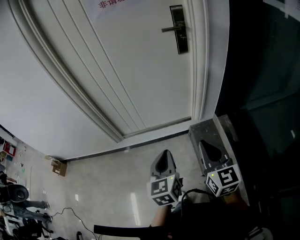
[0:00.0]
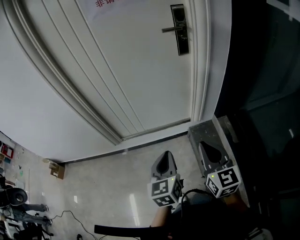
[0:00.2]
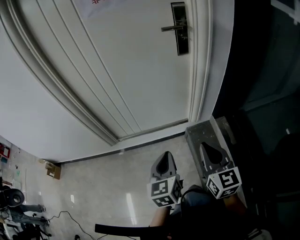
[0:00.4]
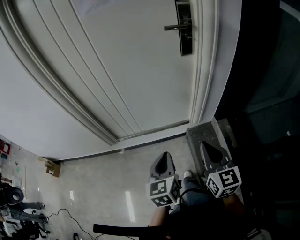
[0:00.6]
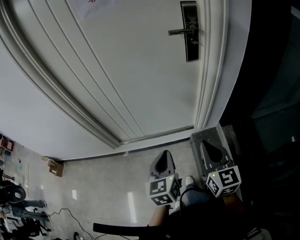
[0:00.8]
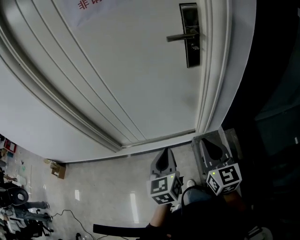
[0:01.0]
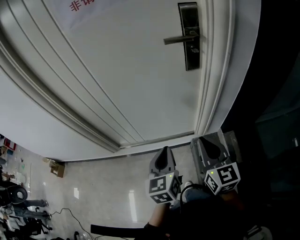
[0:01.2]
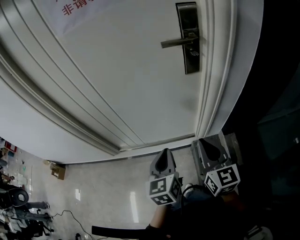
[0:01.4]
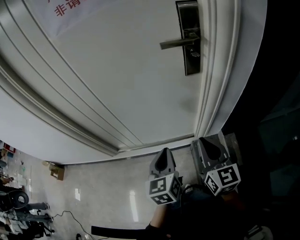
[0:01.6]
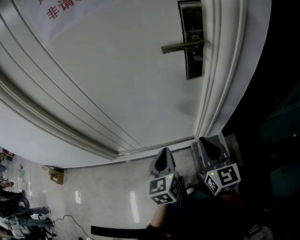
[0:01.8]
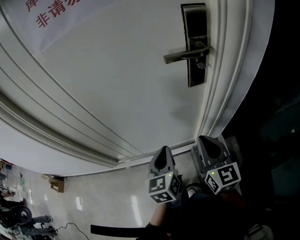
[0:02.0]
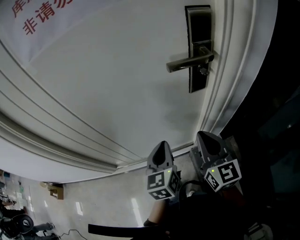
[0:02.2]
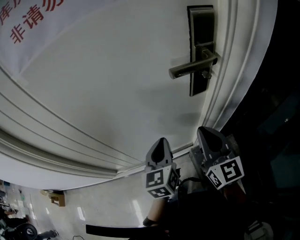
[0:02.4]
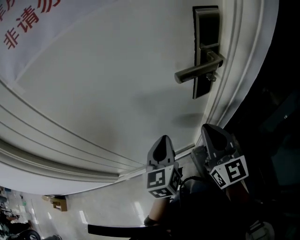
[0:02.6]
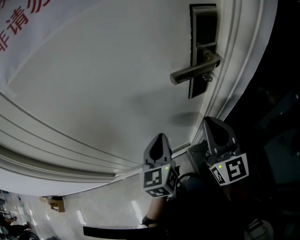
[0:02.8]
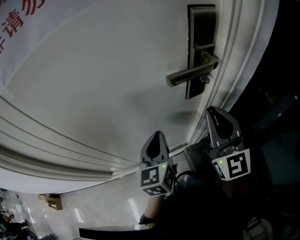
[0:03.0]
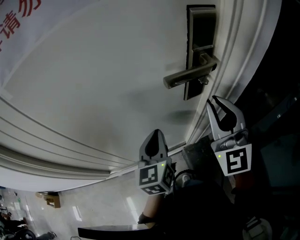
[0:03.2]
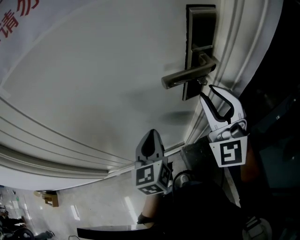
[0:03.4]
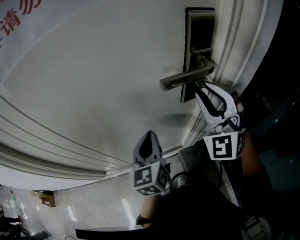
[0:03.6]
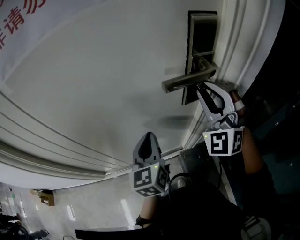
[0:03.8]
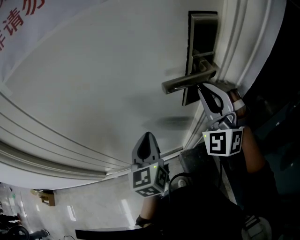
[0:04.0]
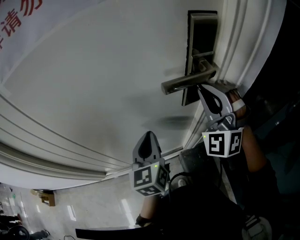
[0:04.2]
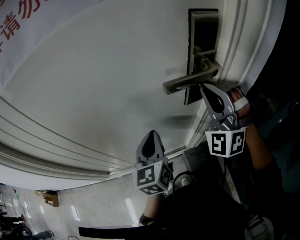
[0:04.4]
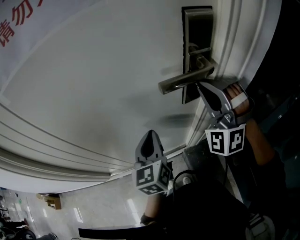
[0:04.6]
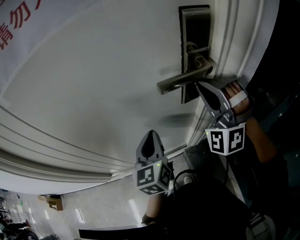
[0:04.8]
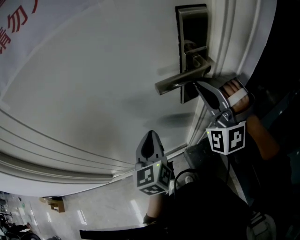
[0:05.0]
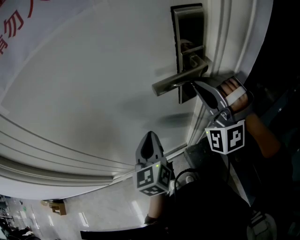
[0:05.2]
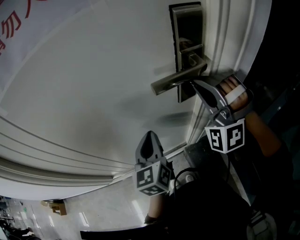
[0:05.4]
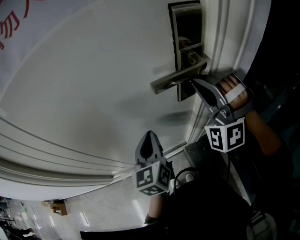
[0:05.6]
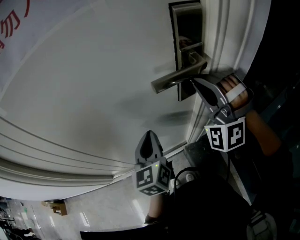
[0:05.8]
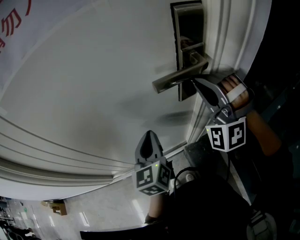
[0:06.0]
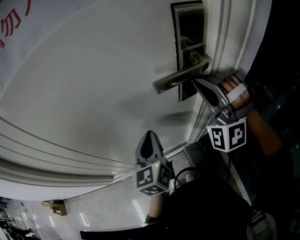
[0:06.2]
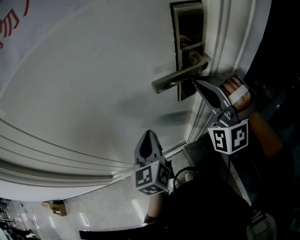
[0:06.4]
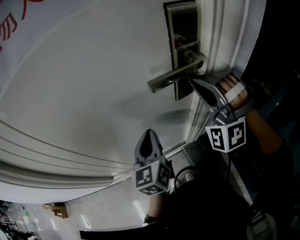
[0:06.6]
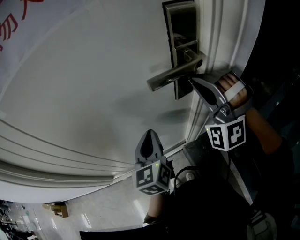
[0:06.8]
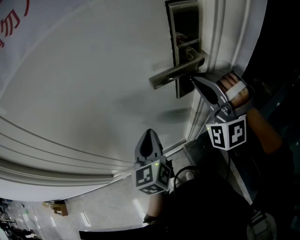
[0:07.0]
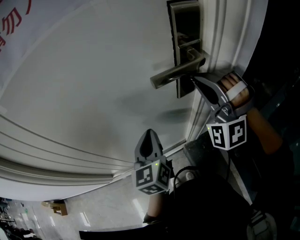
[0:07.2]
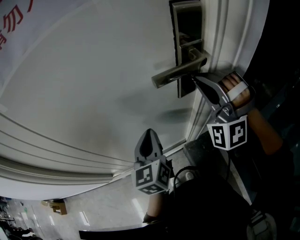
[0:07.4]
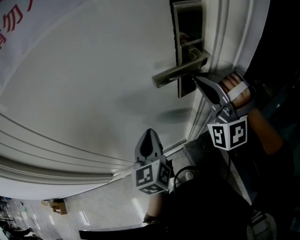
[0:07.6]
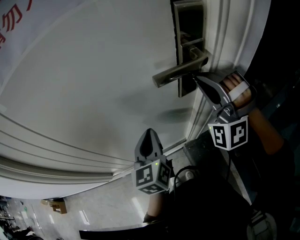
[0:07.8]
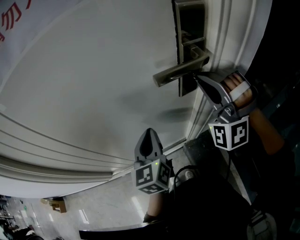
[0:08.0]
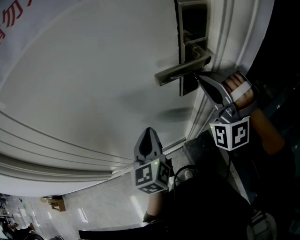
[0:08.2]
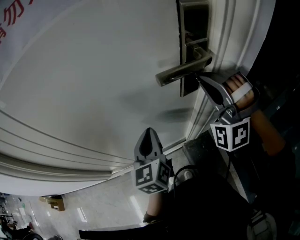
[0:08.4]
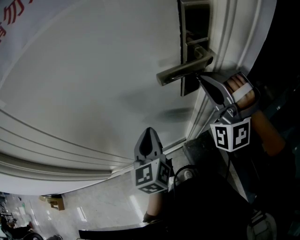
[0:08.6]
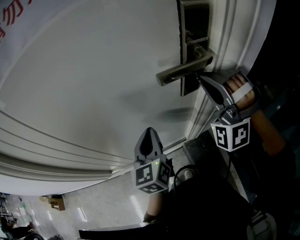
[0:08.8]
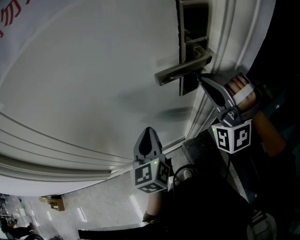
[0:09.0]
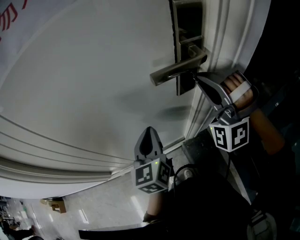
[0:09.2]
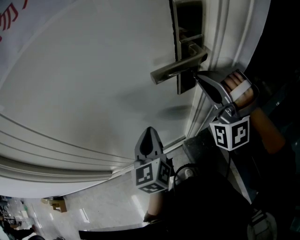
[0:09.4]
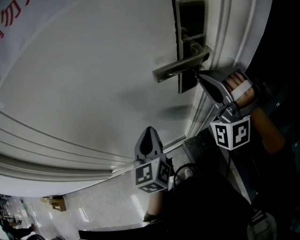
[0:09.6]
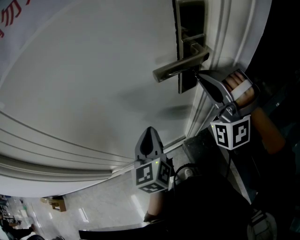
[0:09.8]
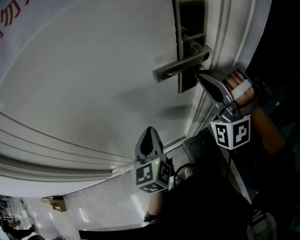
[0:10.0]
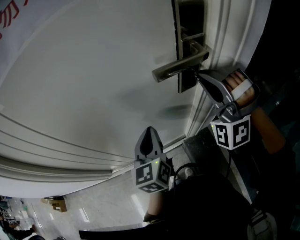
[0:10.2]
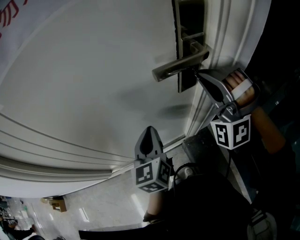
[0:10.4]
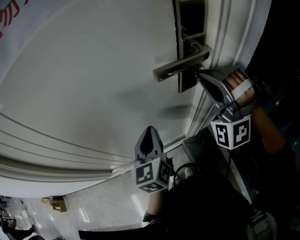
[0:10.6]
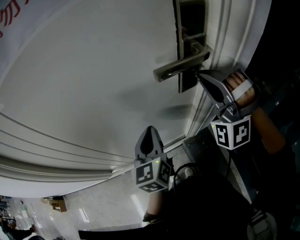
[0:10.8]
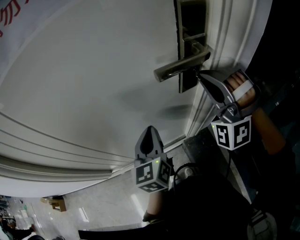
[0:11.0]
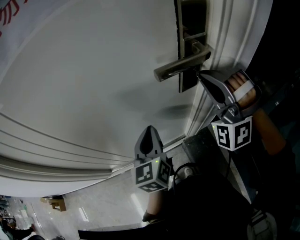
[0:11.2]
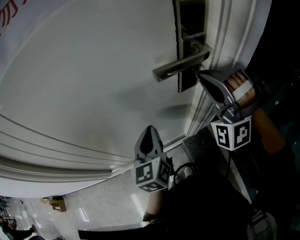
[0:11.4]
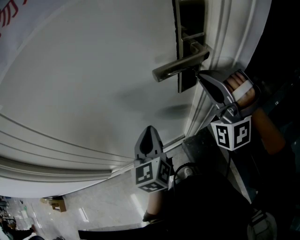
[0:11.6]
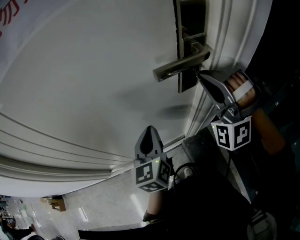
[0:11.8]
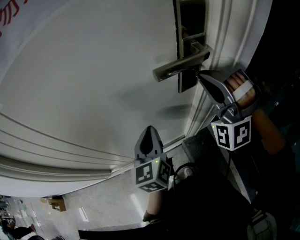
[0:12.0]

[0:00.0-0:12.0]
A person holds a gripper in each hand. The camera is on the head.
0:00.0 to 0:01.6: Both grippers move forward, about 30 cm.
0:01.6 to 0:03.0: The right gripper shifts some 20 cm forward and upward, and changes its angle by some 30 degrees; the left gripper heads forward, covering some 20 cm.
0:03.0 to 0:04.4: The right gripper shifts some 10 cm forward, and twists approximately 60 degrees counterclockwise, seen from behind.
0:04.4 to 0:06.0: The grippers move only a little.
0:06.0 to 0:07.6: Both grippers stay about where they are.
0:07.6 to 0:12.0: Neither gripper changes place.

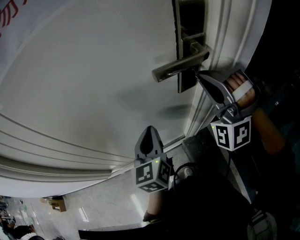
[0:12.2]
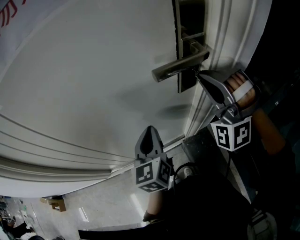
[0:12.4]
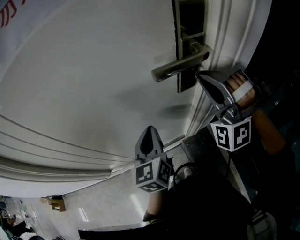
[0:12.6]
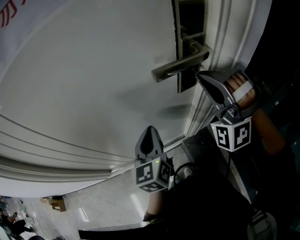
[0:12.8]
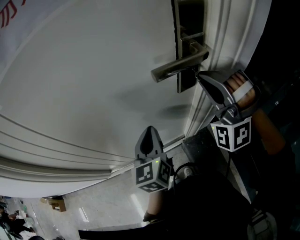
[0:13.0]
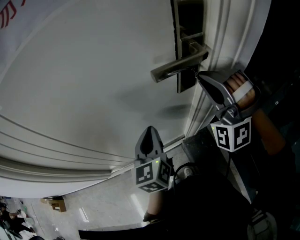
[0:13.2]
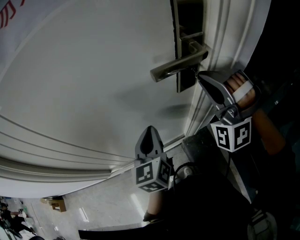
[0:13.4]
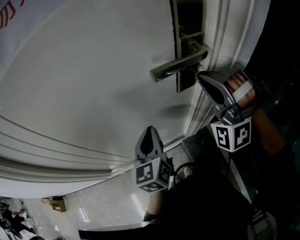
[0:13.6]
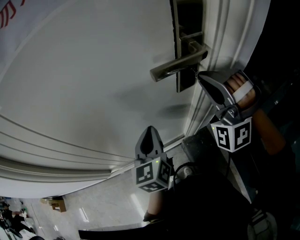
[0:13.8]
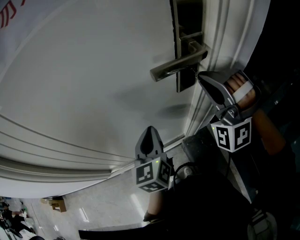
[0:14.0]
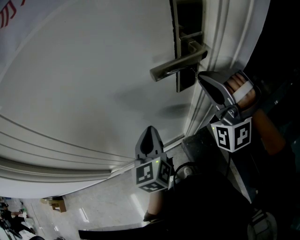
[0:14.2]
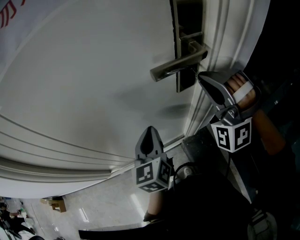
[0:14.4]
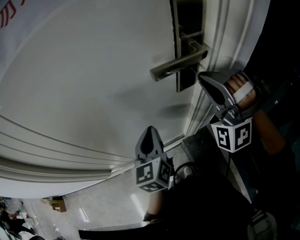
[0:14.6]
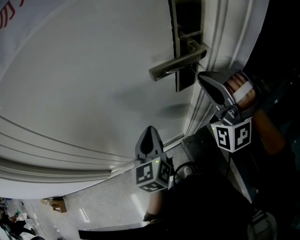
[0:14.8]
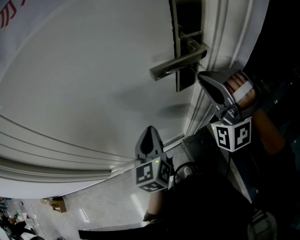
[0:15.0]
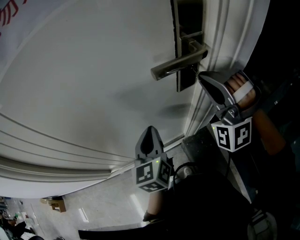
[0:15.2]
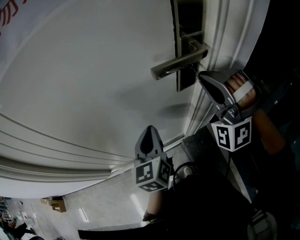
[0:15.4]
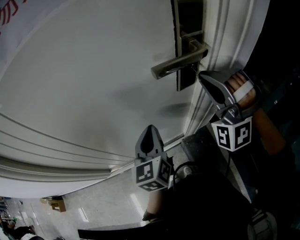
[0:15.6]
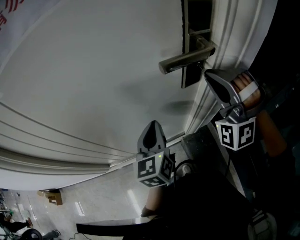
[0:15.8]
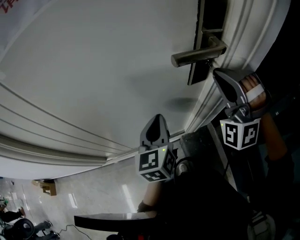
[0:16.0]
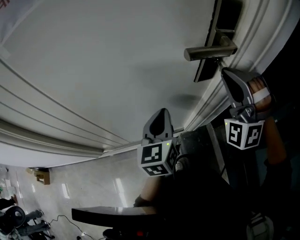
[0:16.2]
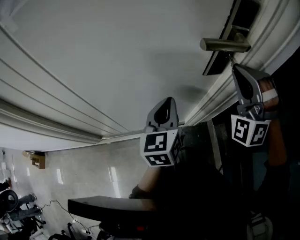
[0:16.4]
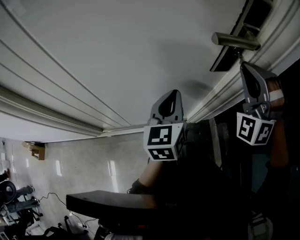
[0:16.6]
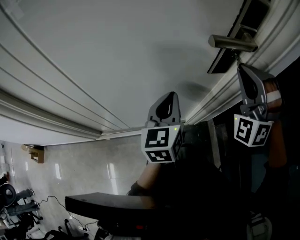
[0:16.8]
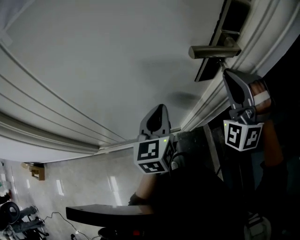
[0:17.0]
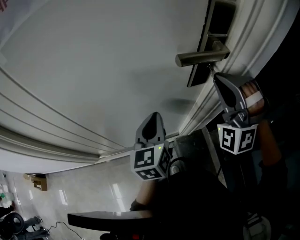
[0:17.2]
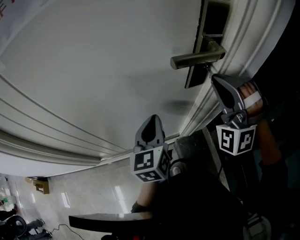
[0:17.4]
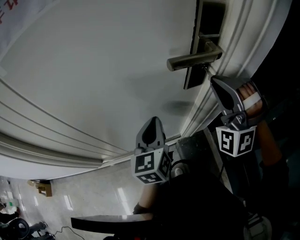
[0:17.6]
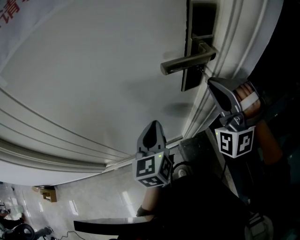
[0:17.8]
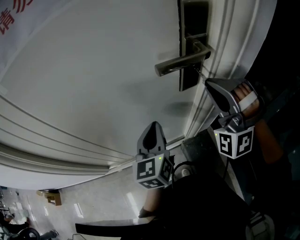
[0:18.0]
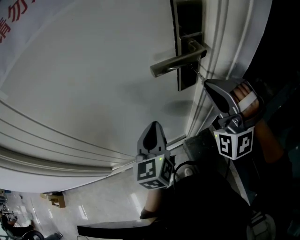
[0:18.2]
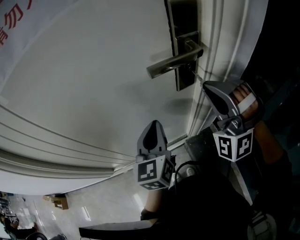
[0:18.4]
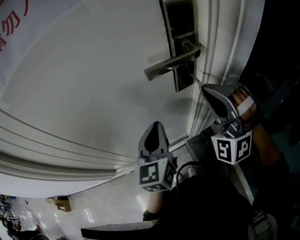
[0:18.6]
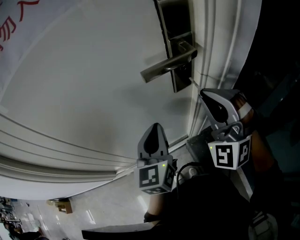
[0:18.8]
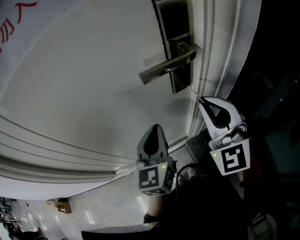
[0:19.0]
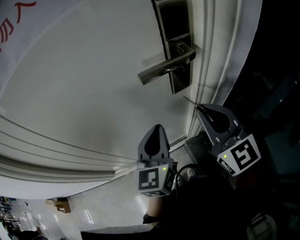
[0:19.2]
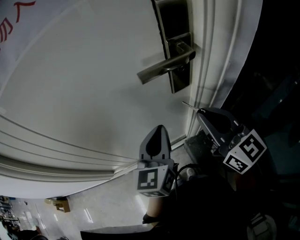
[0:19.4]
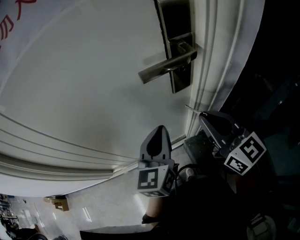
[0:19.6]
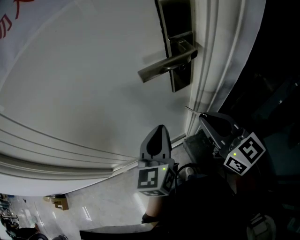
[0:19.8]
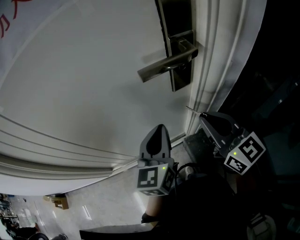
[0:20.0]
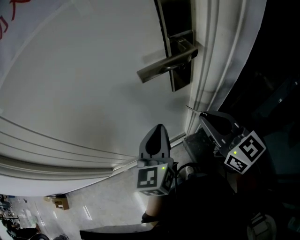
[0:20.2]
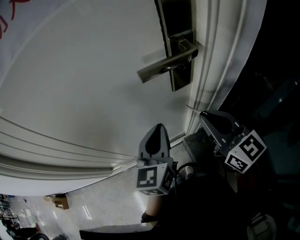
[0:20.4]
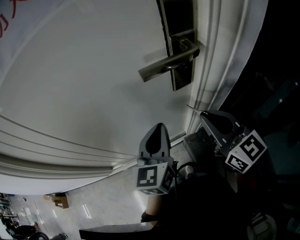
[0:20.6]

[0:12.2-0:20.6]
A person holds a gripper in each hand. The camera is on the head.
0:12.2 to 0:16.4: The two grippers keep their place.
0:16.4 to 0:17.8: The two grippers keep their place.
0:17.8 to 0:19.2: The left gripper shifts by about 5 cm. The right gripper goes approximately 5 cm backward, and rolls clockwise, seen from behind, by some 80 degrees.
0:19.2 to 0:20.6: The grippers move only a little.

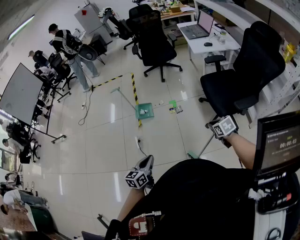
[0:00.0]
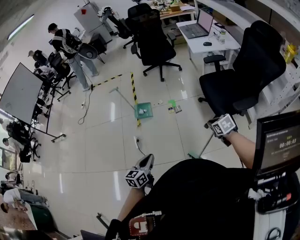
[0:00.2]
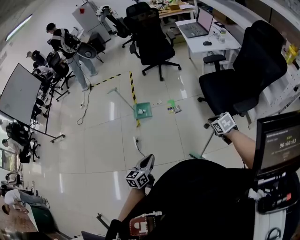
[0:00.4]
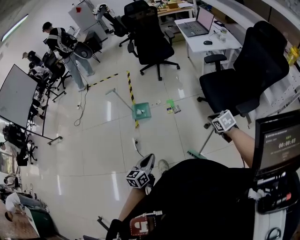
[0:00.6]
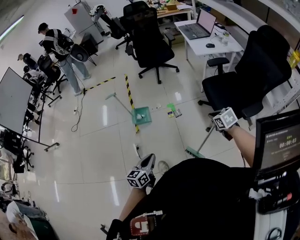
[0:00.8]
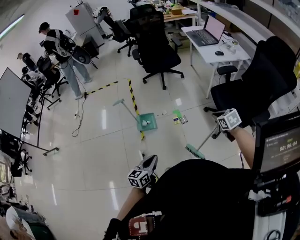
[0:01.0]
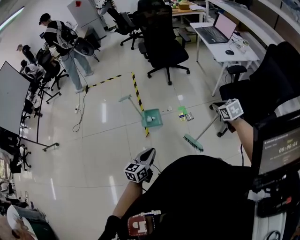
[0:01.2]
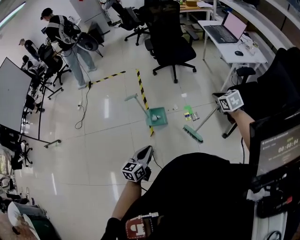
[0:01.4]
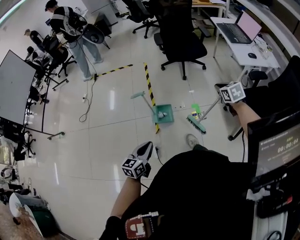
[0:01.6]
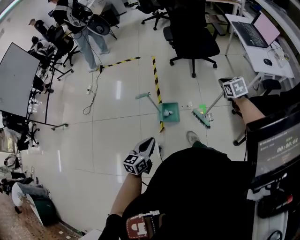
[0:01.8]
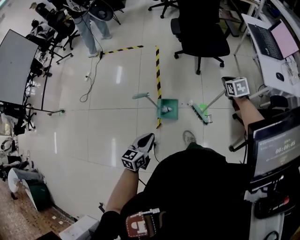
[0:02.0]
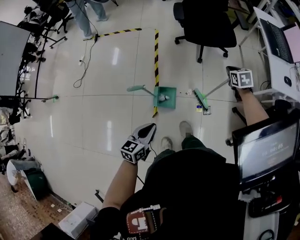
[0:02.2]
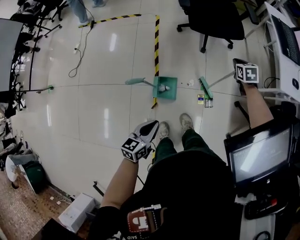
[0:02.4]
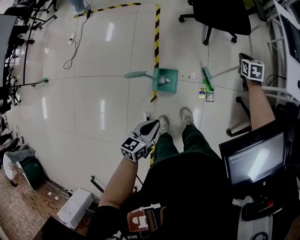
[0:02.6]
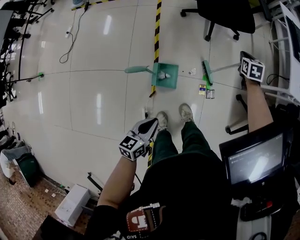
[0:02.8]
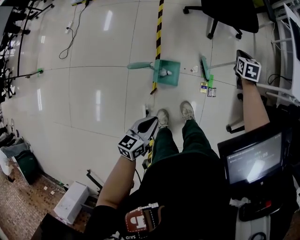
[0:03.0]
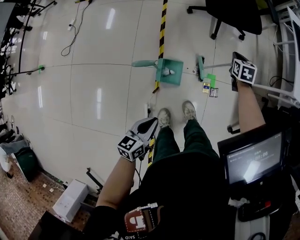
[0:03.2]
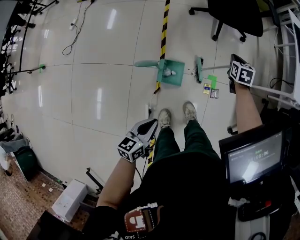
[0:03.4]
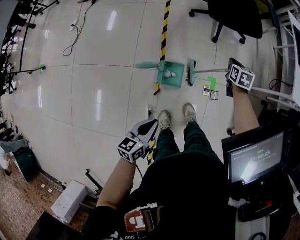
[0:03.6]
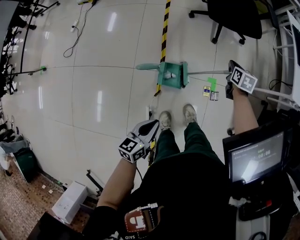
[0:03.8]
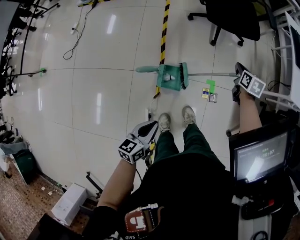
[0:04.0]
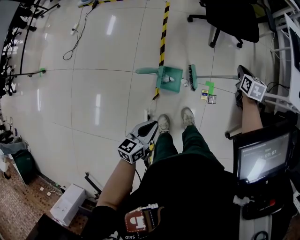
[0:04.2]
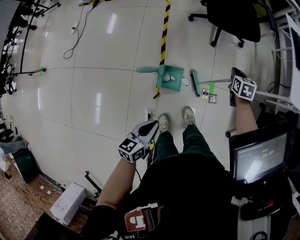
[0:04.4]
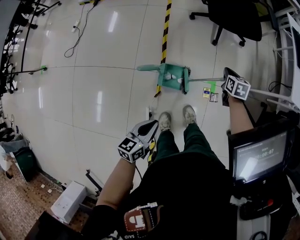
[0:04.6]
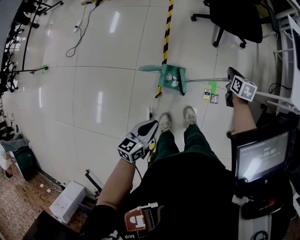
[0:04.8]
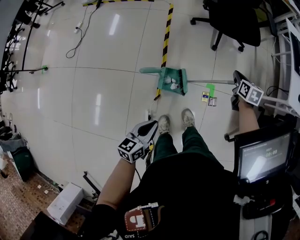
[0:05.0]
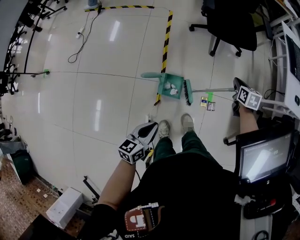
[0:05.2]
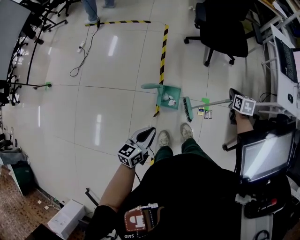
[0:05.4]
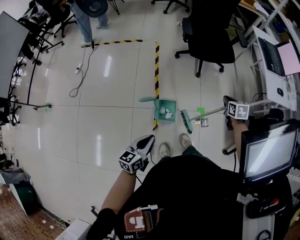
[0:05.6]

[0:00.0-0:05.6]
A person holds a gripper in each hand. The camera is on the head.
0:00.0 to 0:01.4: The two grippers go about 40 cm forward and to the left.
0:01.4 to 0:02.8: The left gripper moves forward and downward, some 35 cm. Meanwhile the right gripper moves forward and downward, some 50 cm.
0:02.8 to 0:04.2: The right gripper shifts about 10 cm backward.
0:04.2 to 0:05.6: The left gripper travels upward by roughly 10 cm; the right gripper is displaced upward and backward by some 15 cm.
